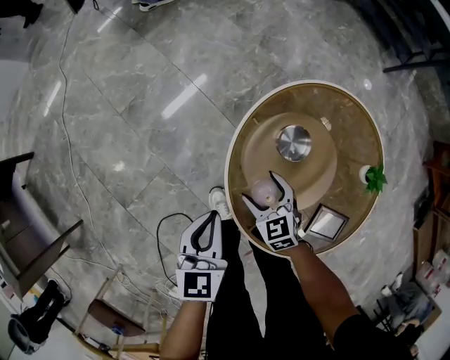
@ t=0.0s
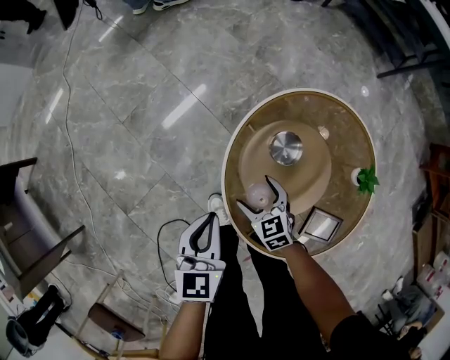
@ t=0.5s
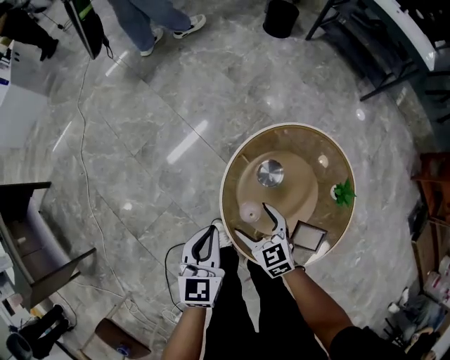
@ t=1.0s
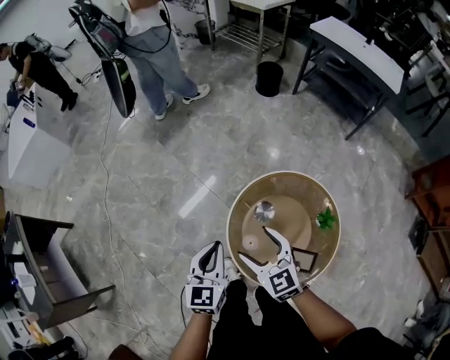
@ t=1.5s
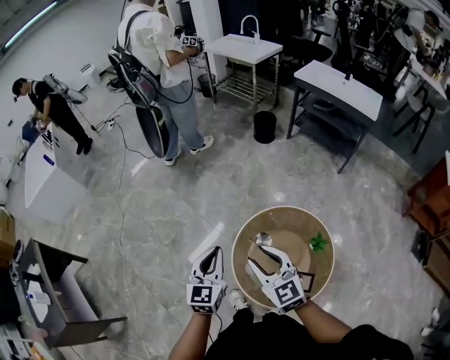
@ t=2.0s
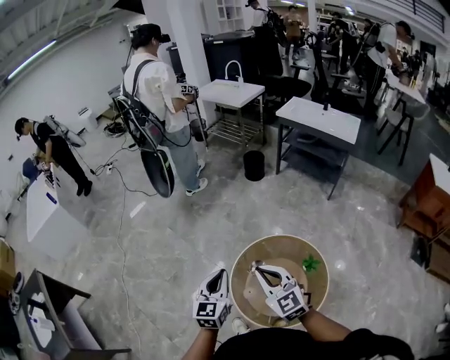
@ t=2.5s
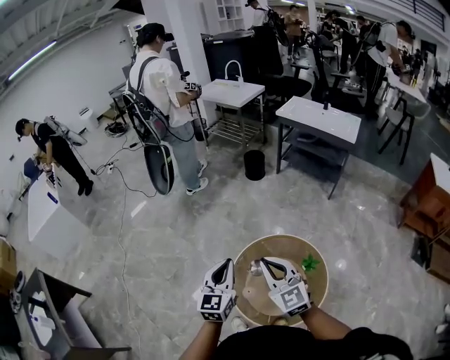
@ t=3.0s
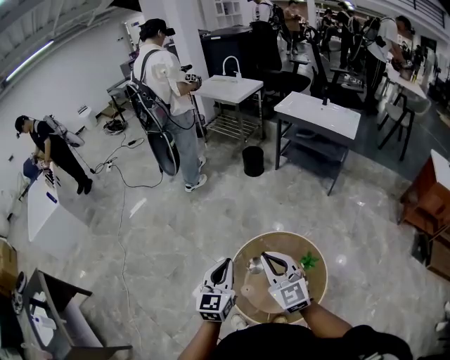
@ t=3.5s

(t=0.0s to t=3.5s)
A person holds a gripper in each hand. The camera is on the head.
t=0.0s - t=2.0s: The grippers both shift upward by approximately 40 cm. The left gripper turns by some 20 degrees. Meanwhile the right gripper tilts its fingers some 30 degrees upward, and closes.
t=2.0s - t=3.5s: The left gripper moves to the right and upward, about 10 cm. Meanwhile the right gripper shifts some 10 cm upward and to the right, and closes its fingers.

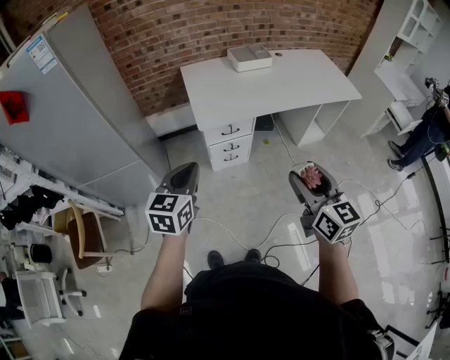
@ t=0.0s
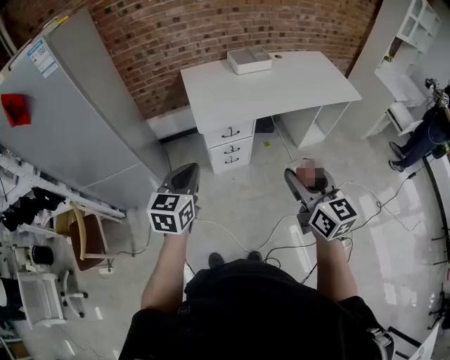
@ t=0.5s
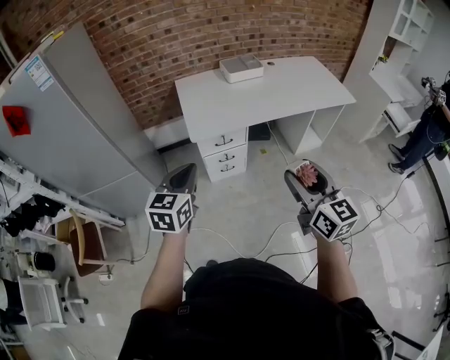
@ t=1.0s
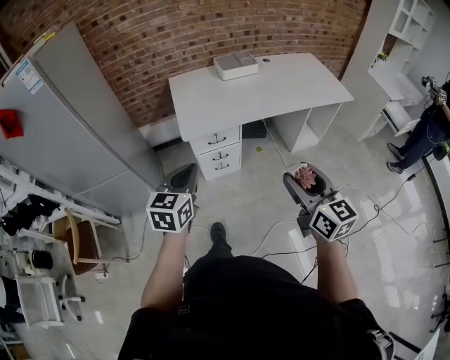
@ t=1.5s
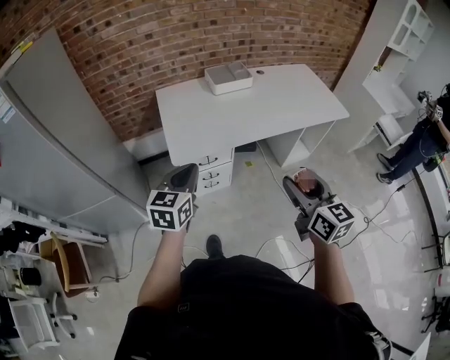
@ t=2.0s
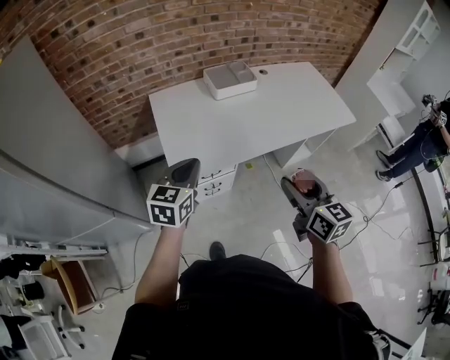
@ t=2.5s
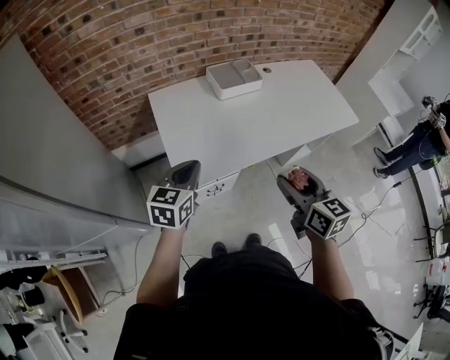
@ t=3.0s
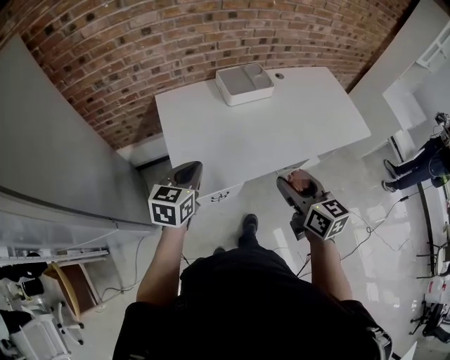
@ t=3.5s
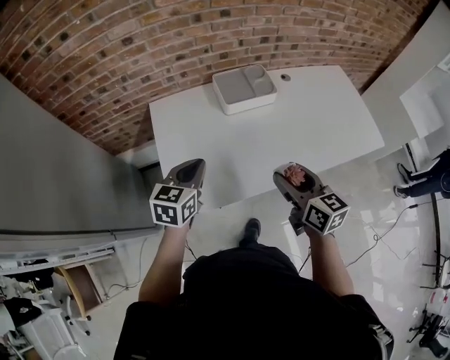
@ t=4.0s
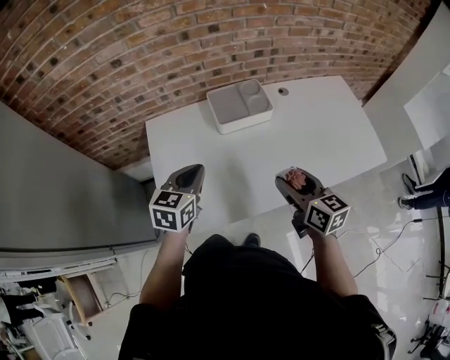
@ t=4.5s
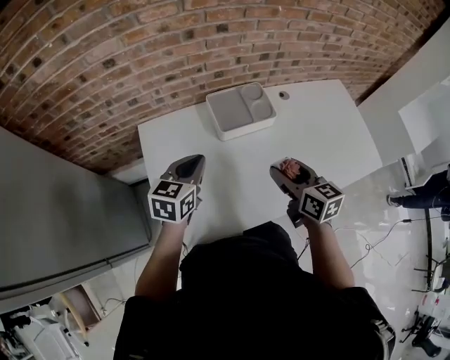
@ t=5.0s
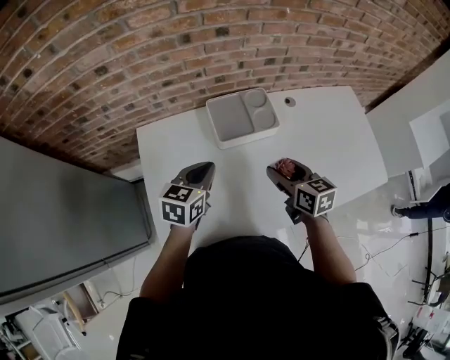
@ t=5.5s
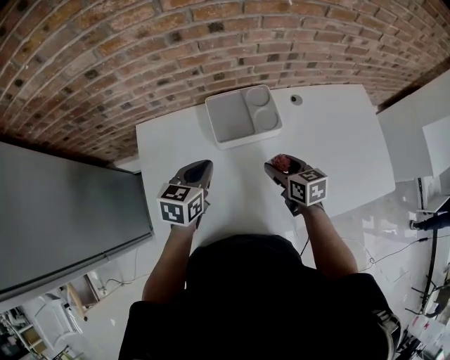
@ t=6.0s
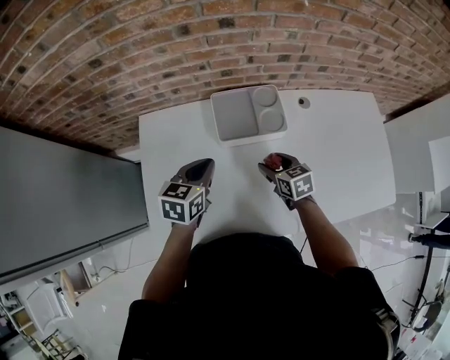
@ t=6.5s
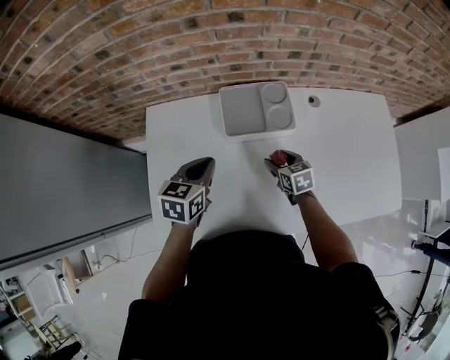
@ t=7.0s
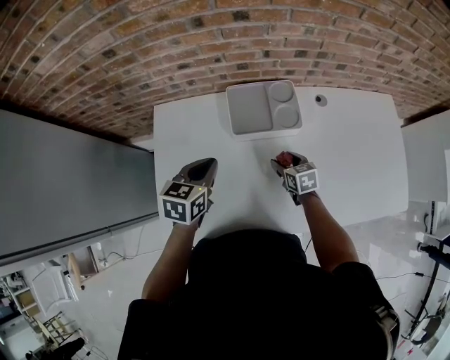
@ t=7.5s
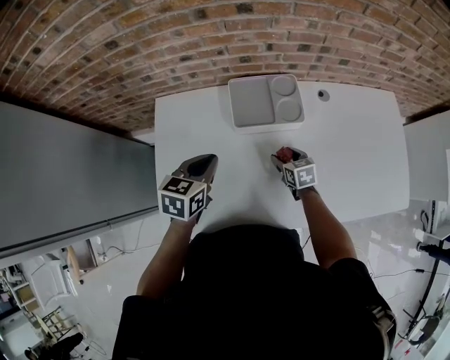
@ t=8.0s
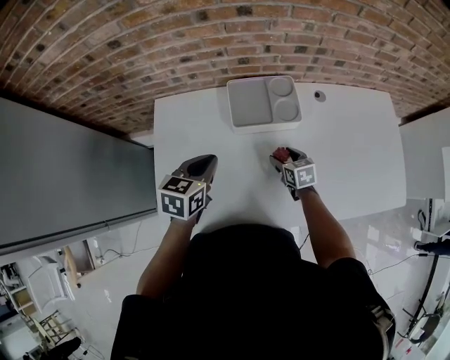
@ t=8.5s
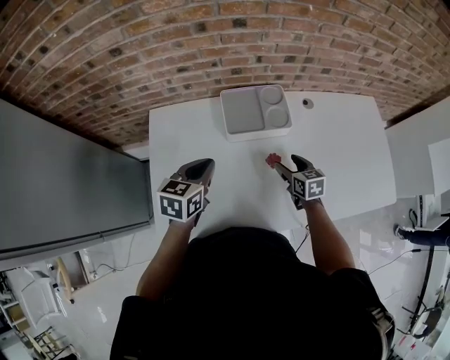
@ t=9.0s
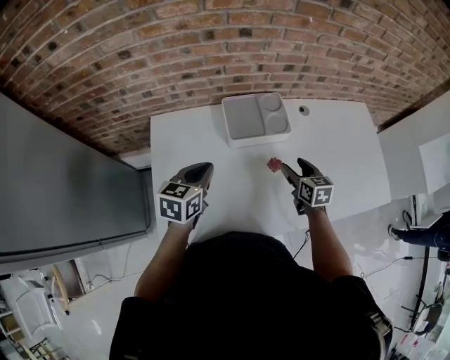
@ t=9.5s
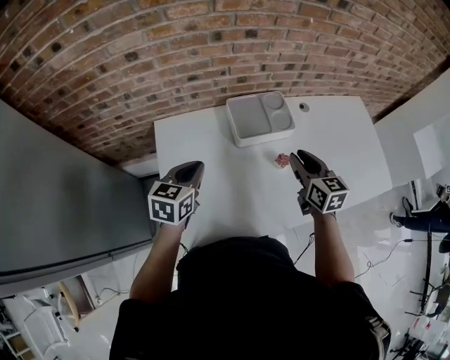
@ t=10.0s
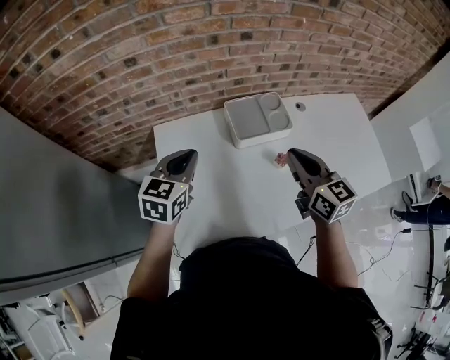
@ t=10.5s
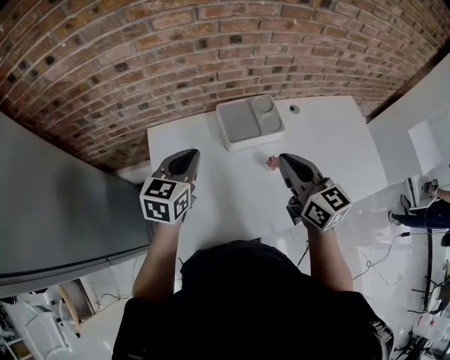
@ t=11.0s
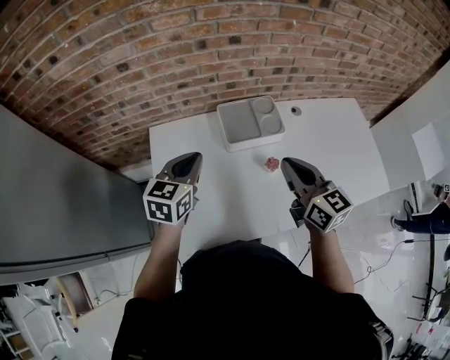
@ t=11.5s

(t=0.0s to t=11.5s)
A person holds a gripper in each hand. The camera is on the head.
t=0.0s - t=2.0s: Both grippers travel together forward and to the right, about 15 cm.
t=2.0s - t=4.0s: The grippers both shift forward by approximately 35 cm.
t=4.0s - t=6.0s: The left gripper shifts approximately 20 cm forward and to the right. The right gripper goes some 30 cm forward and downward, and swivels roughly 20 degrees.
t=6.0s - t=7.5s: The right gripper travels downward by some 10 cm.
t=7.5s - t=9.5s: The right gripper goes approximately 10 cm upward.
t=9.5s - t=11.5s: The right gripper shifts approximately 20 cm upward, swivels approximately 30 degrees, and closes up, while the left gripper travels upward by about 10 cm, and reaches approximately 10 cm to the left, then returns.

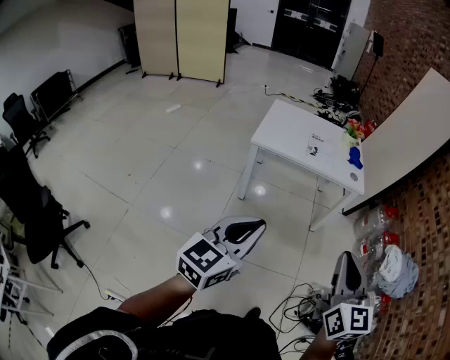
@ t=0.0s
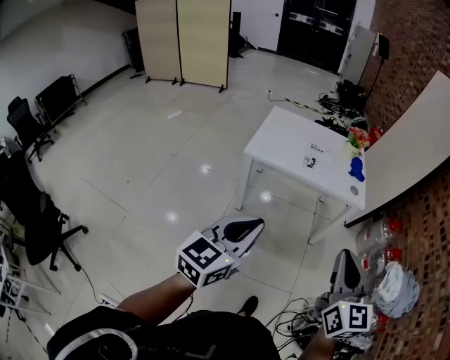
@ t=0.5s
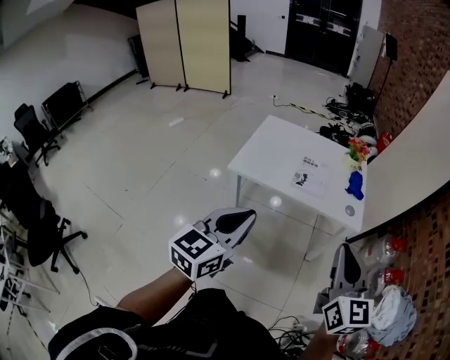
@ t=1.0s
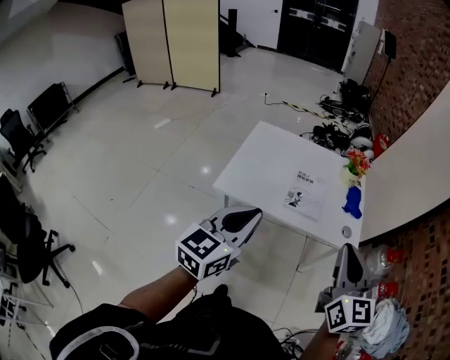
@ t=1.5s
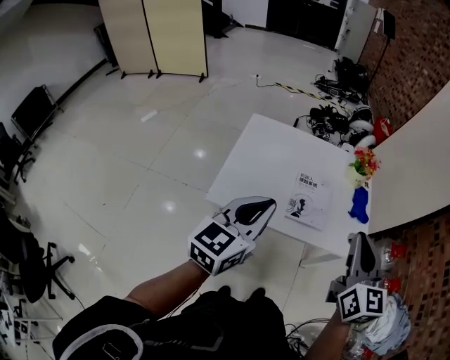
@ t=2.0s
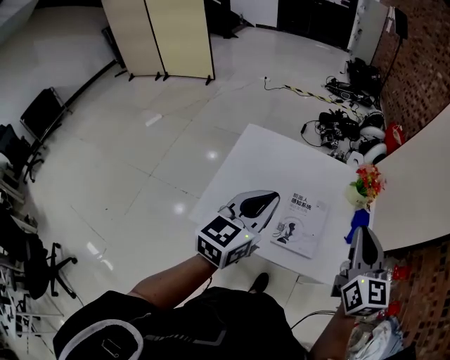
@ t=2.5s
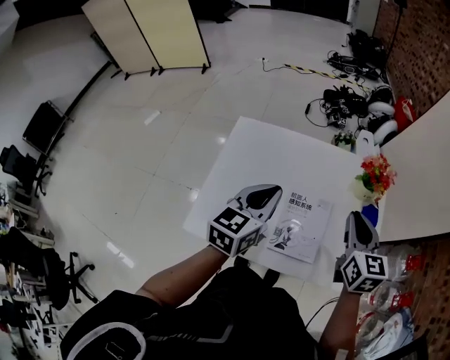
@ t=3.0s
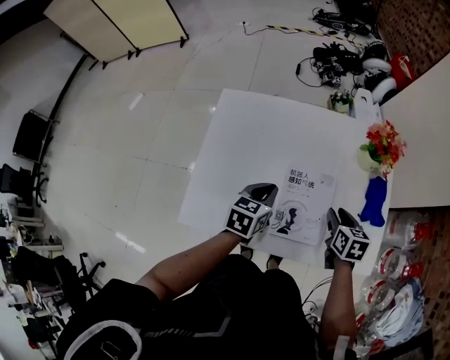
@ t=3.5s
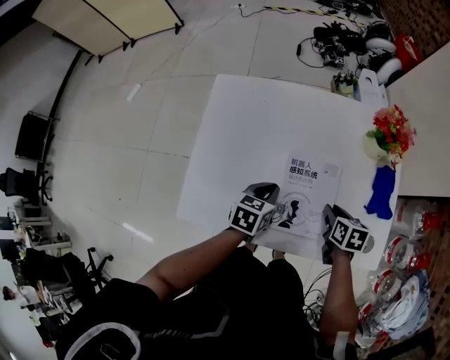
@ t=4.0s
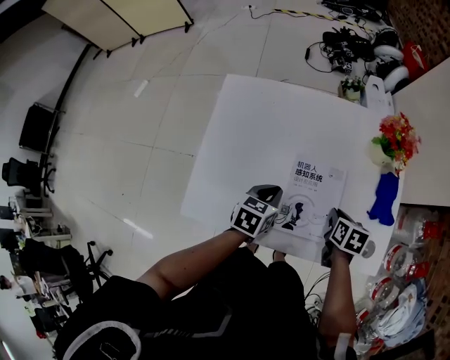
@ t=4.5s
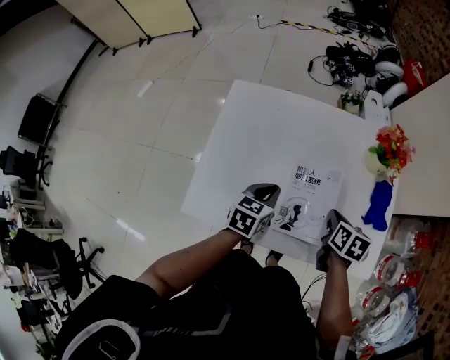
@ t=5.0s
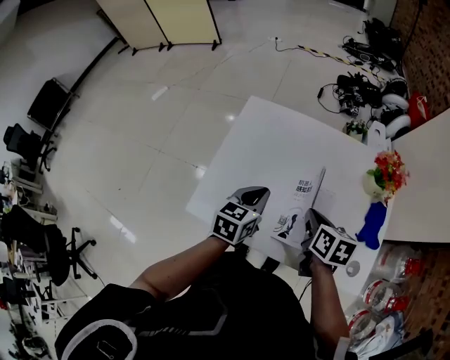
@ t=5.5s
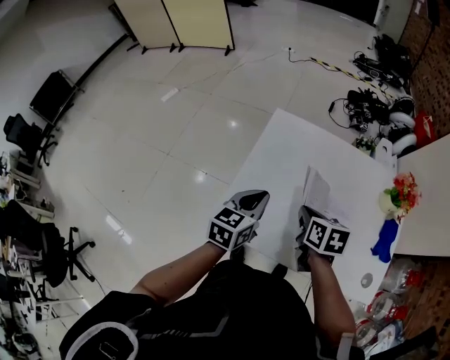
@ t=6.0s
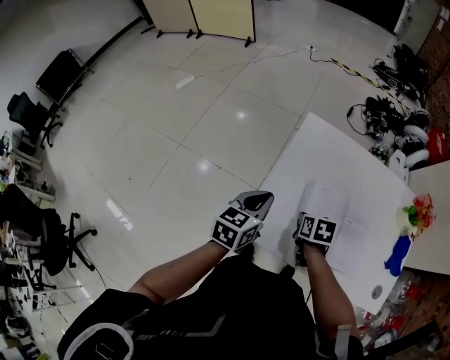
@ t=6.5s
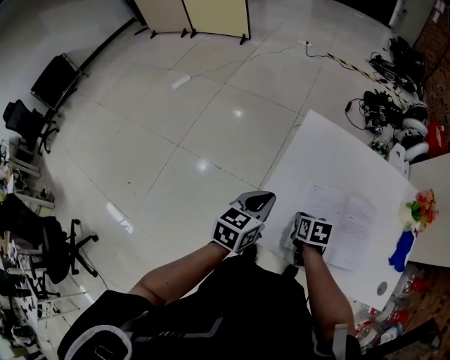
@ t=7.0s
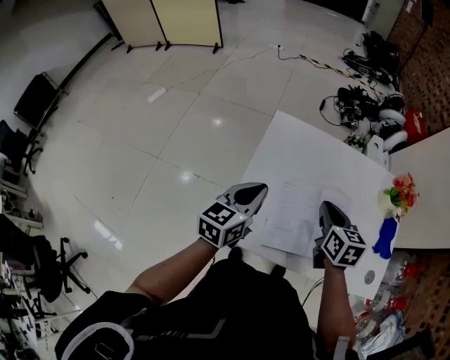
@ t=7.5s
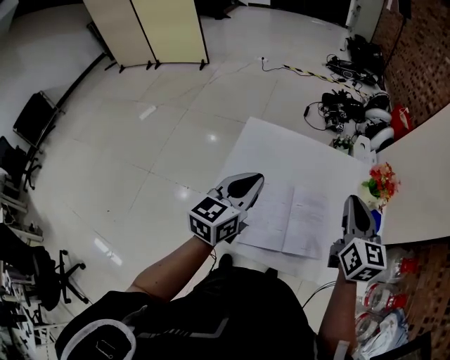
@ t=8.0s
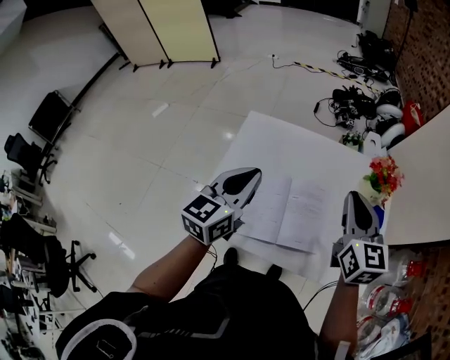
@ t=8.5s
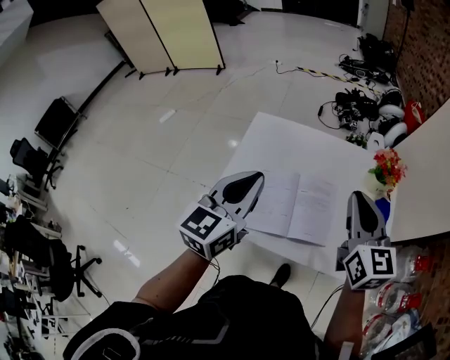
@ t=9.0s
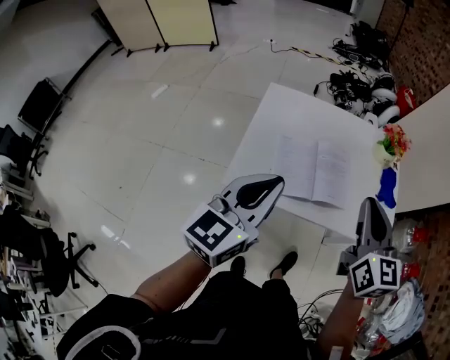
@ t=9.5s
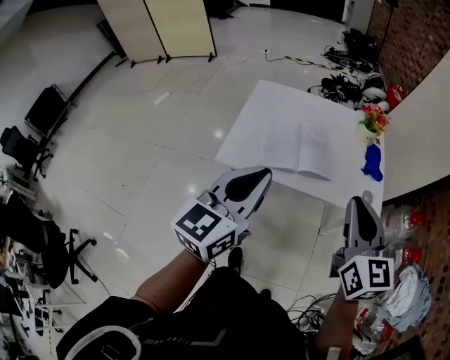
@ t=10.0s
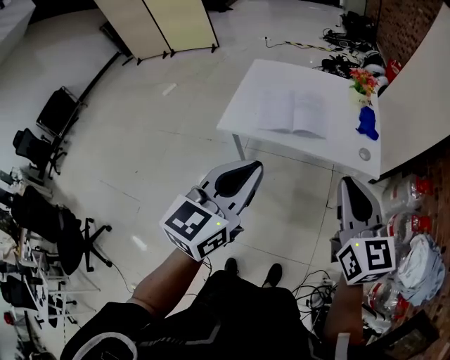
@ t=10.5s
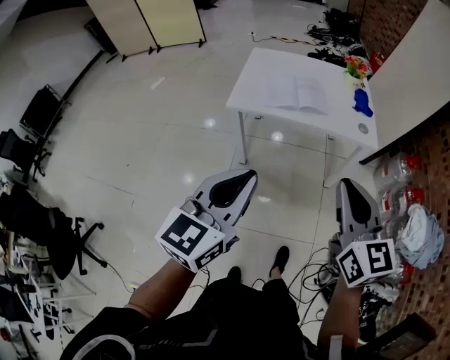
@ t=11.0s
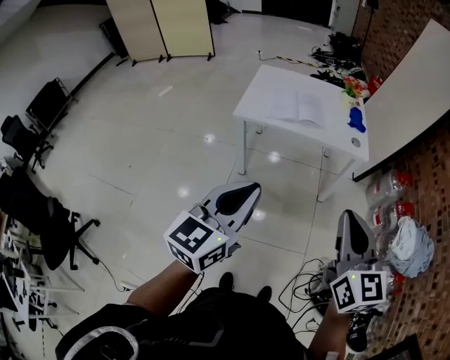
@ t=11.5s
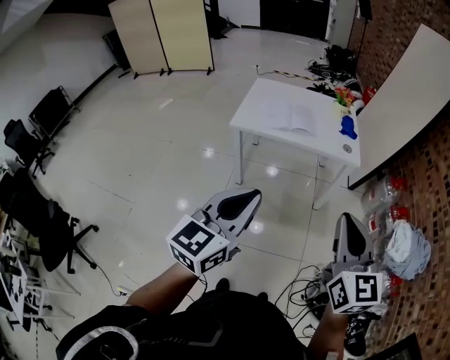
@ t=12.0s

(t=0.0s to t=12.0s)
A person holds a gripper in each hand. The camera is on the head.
t=0.0s - t=2.0s: The two grippers travel together, forward, some 60 cm.
t=2.0s - t=4.0s: The grippers both shift downward and forward by roughly 50 cm. The right gripper angles its fingers downward, by some 50 degrees, and opens up; the left gripper tips its fingers downward by some 40 degrees.
t=4.0s - t=6.0s: The two grippers go roughly 25 cm to the left and upward. The left gripper changes its angle by some 20 degrees. Meanwhile the right gripper closes.
t=6.0s - t=8.0s: The right gripper heads upward and to the right, covering some 25 cm, and tips its fingers upward by roughly 30 degrees, while the left gripper is displaced upward by roughly 10 cm, and travels to the left and back again, roughly 10 cm each way.
t=8.0s - t=10.0s: The two grippers go approximately 35 cm backward.
t=10.0s - t=12.0s: The pair of grippers is taken backward, approximately 40 cm.
